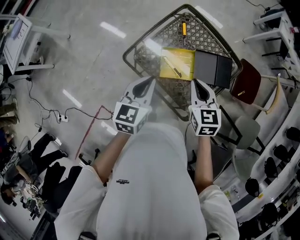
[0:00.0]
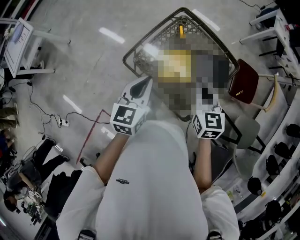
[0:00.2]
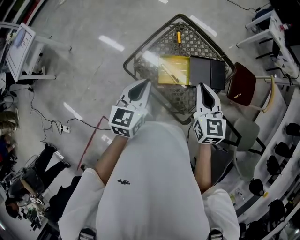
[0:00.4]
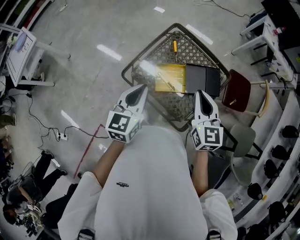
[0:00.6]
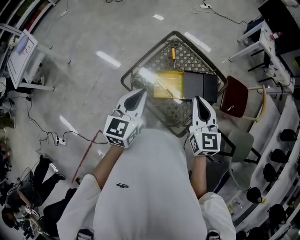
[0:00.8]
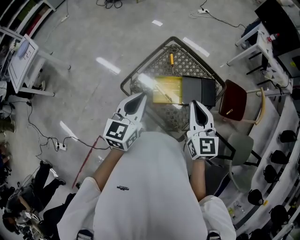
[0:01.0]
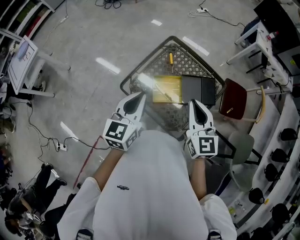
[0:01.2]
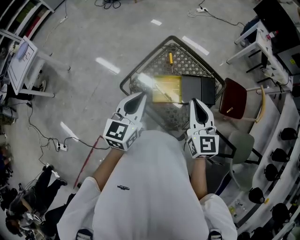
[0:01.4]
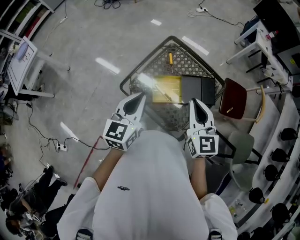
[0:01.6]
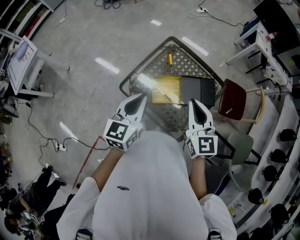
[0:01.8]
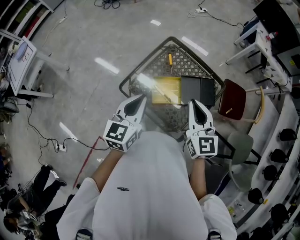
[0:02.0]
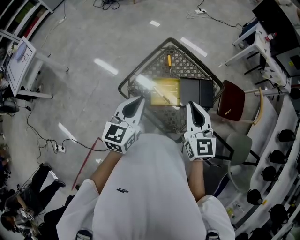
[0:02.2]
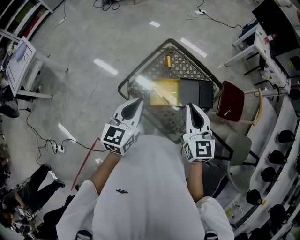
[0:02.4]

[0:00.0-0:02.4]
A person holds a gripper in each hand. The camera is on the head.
0:00.0 to 0:01.2: Both grippers travel together upward, roughly 10 cm. The right gripper swivels about 20 degrees.
0:01.2 to 0:02.4: Both grippers stay about where they are.

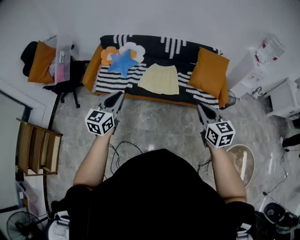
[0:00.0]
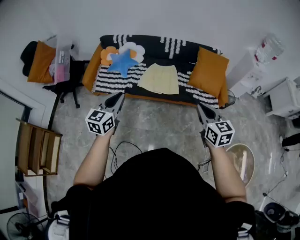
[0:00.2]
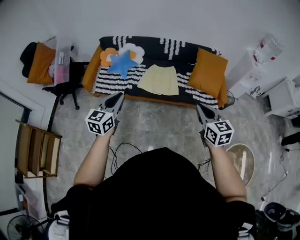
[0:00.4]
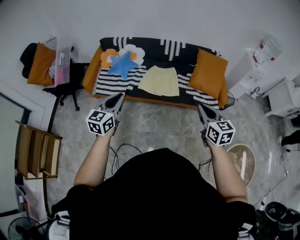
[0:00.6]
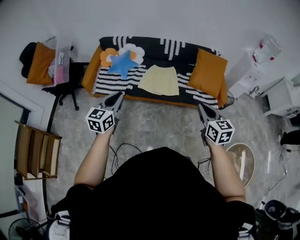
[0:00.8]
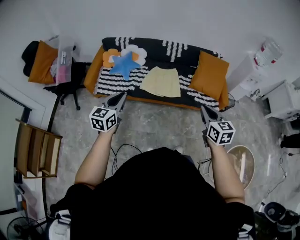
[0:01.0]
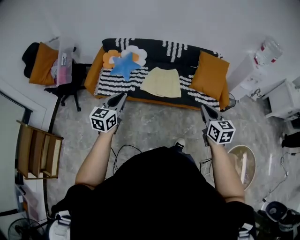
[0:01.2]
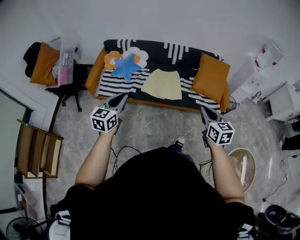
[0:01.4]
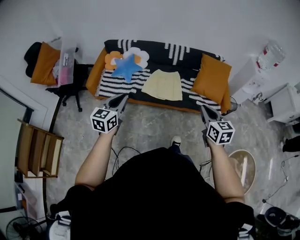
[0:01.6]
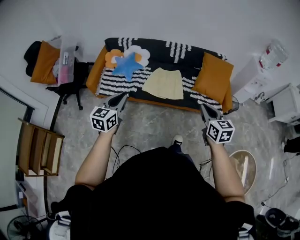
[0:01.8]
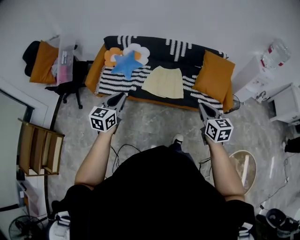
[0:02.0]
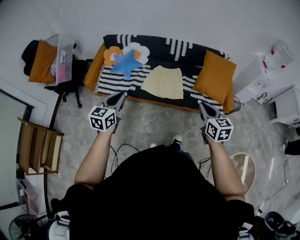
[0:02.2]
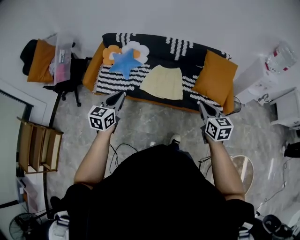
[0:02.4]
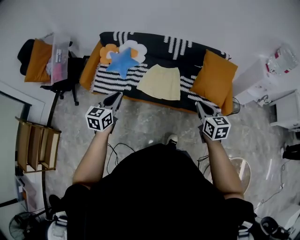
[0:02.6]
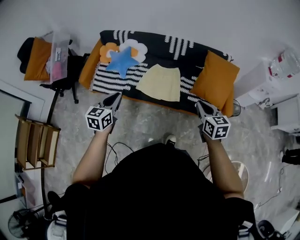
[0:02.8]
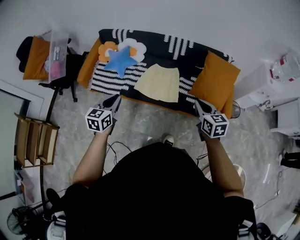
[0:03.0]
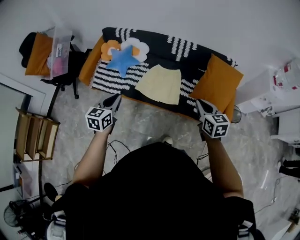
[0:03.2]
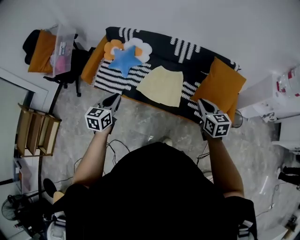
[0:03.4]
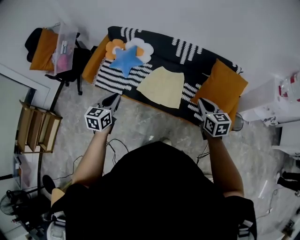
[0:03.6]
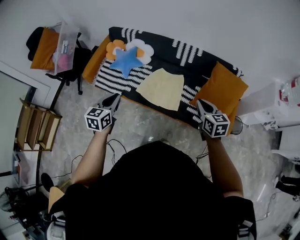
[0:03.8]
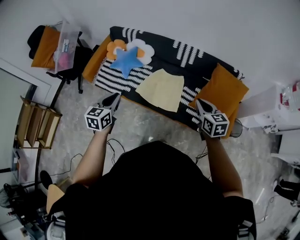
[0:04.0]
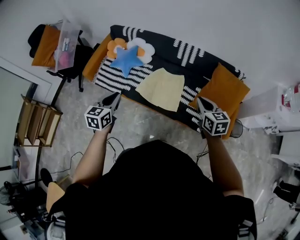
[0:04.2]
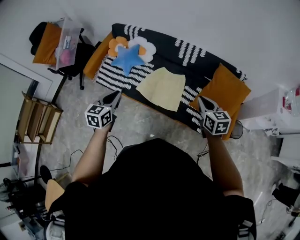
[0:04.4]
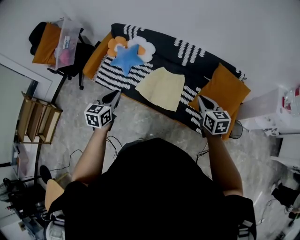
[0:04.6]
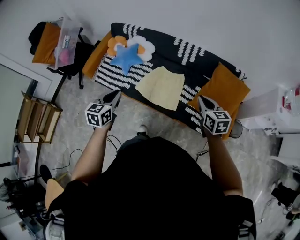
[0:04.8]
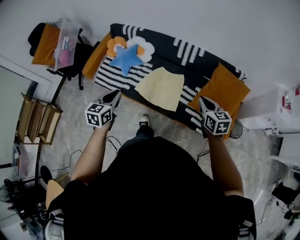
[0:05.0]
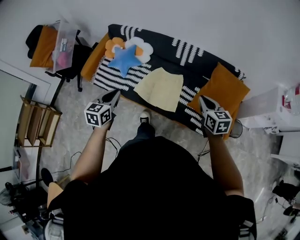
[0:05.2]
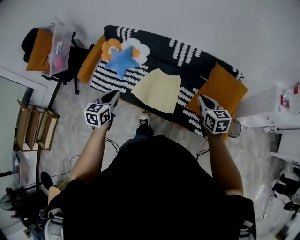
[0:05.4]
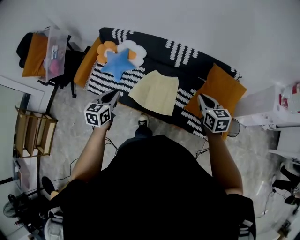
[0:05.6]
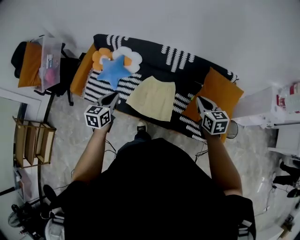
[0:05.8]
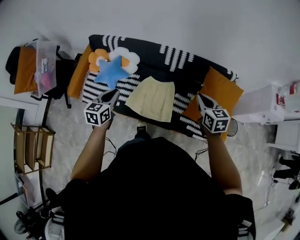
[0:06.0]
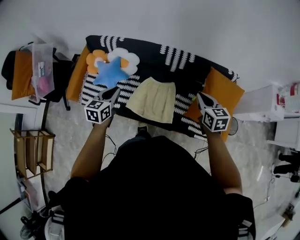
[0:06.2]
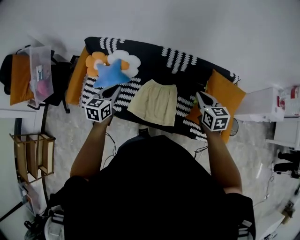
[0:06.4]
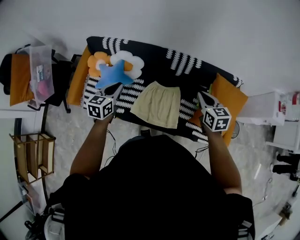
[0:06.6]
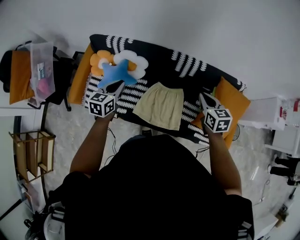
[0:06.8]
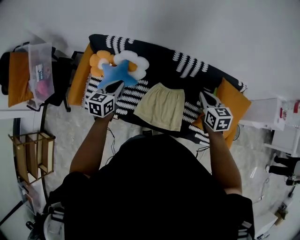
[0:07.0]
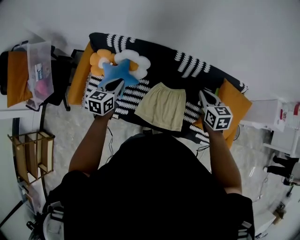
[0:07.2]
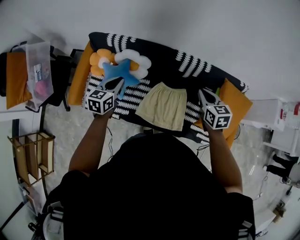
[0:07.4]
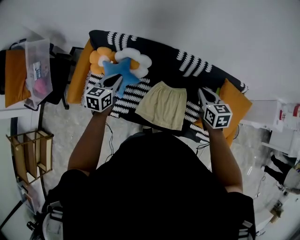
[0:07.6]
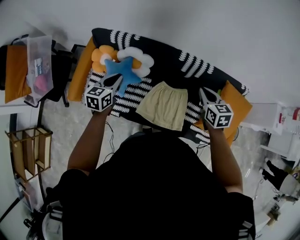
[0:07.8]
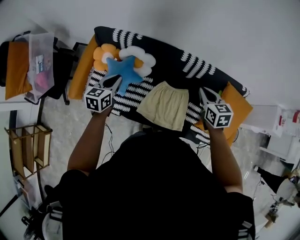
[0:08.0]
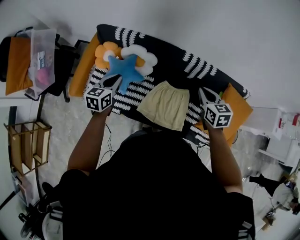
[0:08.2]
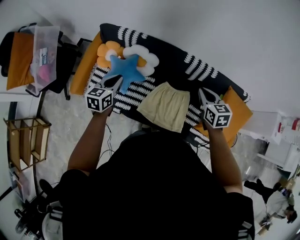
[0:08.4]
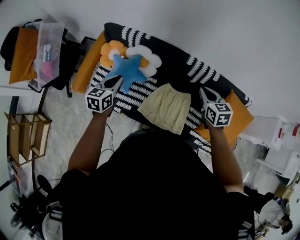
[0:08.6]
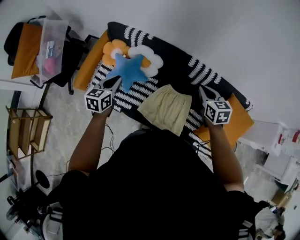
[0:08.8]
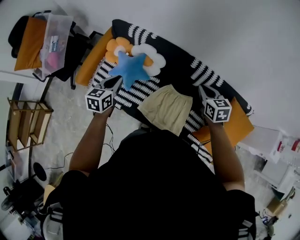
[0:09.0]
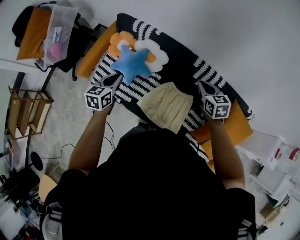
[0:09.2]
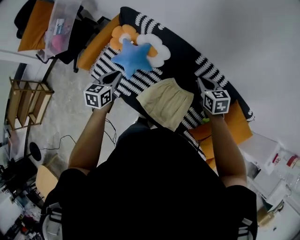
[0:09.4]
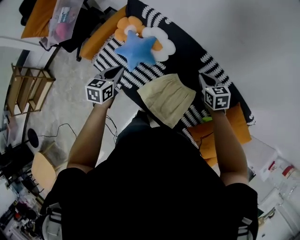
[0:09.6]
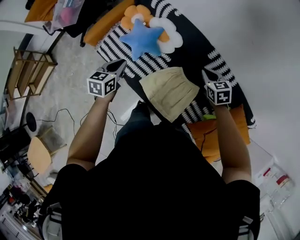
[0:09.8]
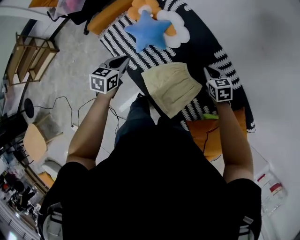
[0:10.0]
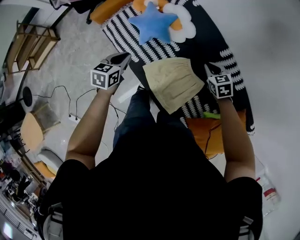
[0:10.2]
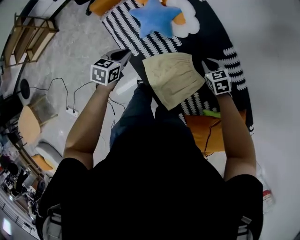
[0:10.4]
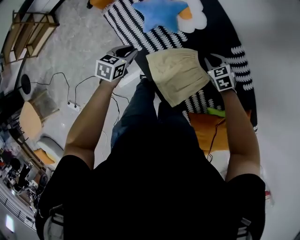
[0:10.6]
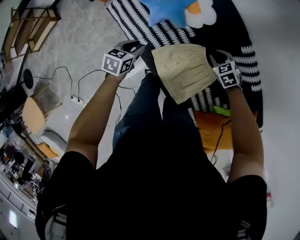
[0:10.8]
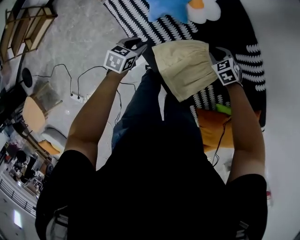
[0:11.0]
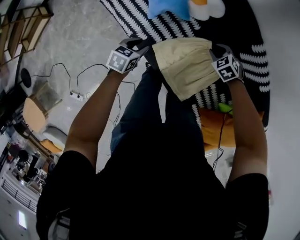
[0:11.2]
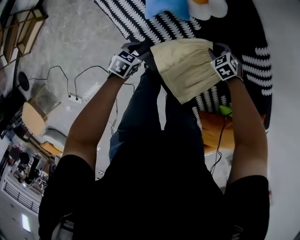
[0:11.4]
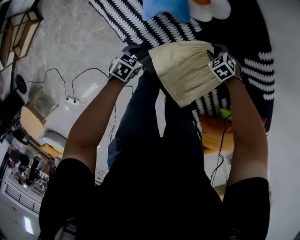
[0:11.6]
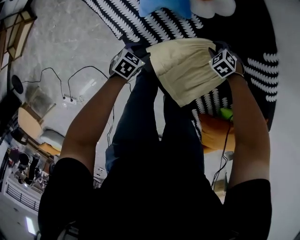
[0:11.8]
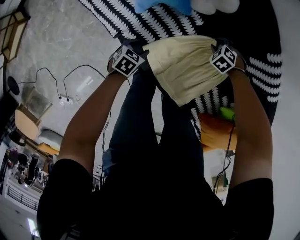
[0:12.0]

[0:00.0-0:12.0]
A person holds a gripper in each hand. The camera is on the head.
0:00.0 to 0:01.6: The grippers stay close to where they were, moving slightly.
0:01.6 to 0:03.0: The right gripper shifts roughly 25 cm forward. Meanwhile the left gripper shifts some 20 cm forward, to the right and downward.
0:03.0 to 0:04.4: The right gripper shifts about 15 cm forward and to the right, while the left gripper shifts roughly 10 cm to the right and forward.
0:04.4 to 0:06.0: The two grippers go about 20 cm forward.
0:06.0 to 0:07.6: The left gripper moves forward and to the left, some 30 cm. The right gripper shifts approximately 30 cm to the left and forward.
0:07.6 to 0:09.0: The left gripper is displaced backward by roughly 5 cm. Meanwhile the right gripper changes place by about 5 cm.
0:09.0 to 0:10.4: Both grippers move downward, approximately 20 cm. The right gripper turns by roughly 50 degrees, while the left gripper changes its angle by approximately 20 degrees.
0:10.4 to 0:12.0: Both grippers travel together downward, approximately 40 cm. The right gripper tilts its fingers approximately 30 degrees downward. The left gripper changes its angle by roughly 30 degrees, and opens.

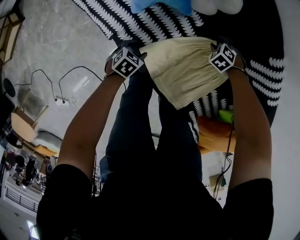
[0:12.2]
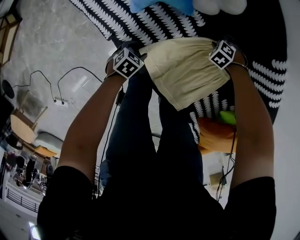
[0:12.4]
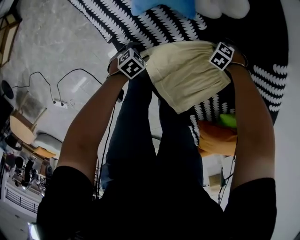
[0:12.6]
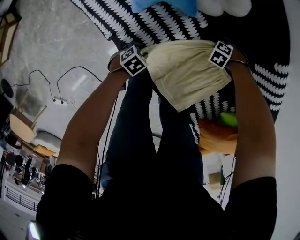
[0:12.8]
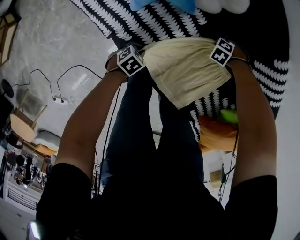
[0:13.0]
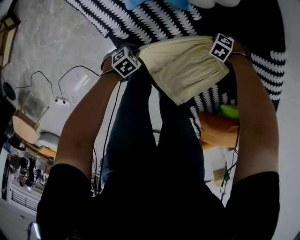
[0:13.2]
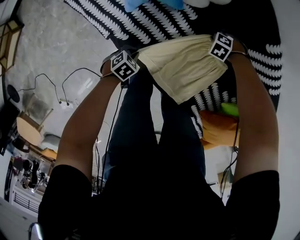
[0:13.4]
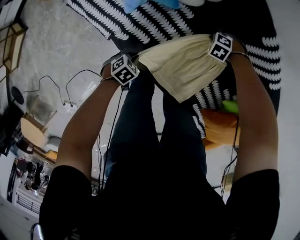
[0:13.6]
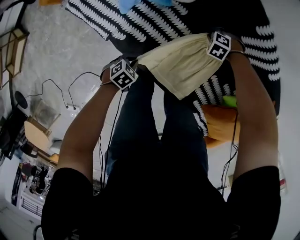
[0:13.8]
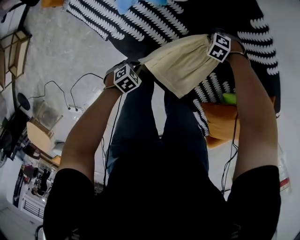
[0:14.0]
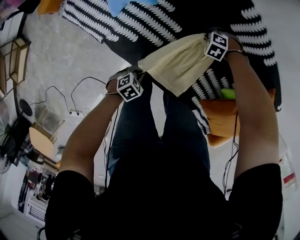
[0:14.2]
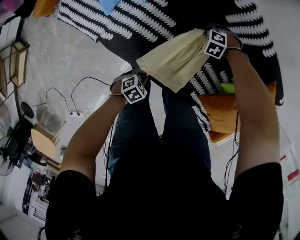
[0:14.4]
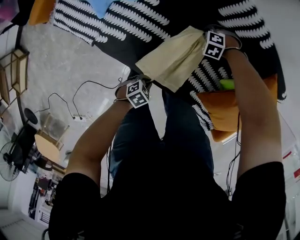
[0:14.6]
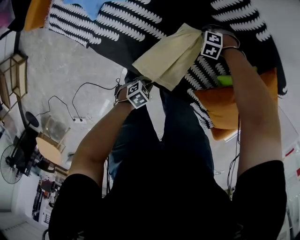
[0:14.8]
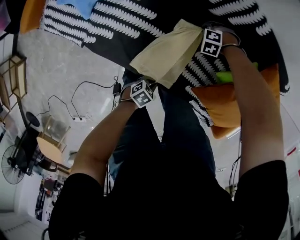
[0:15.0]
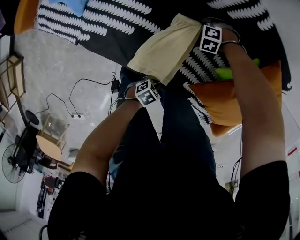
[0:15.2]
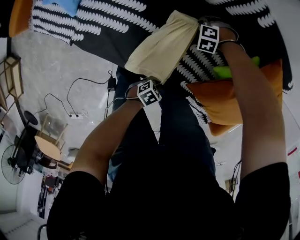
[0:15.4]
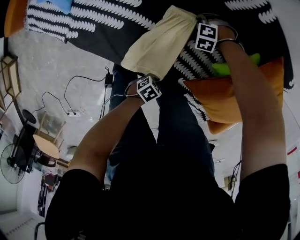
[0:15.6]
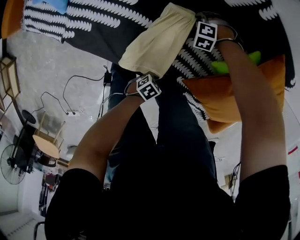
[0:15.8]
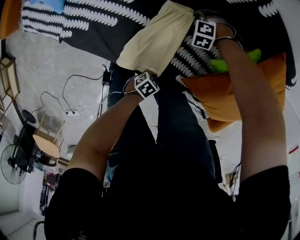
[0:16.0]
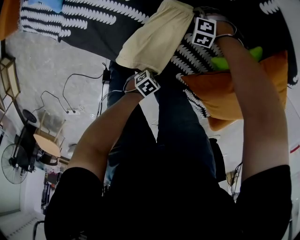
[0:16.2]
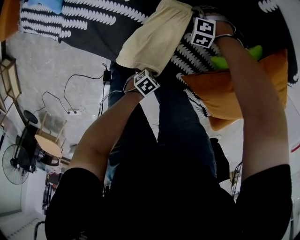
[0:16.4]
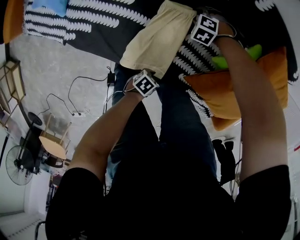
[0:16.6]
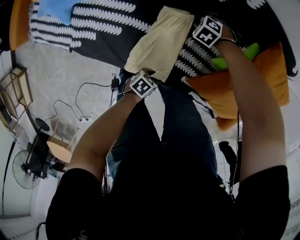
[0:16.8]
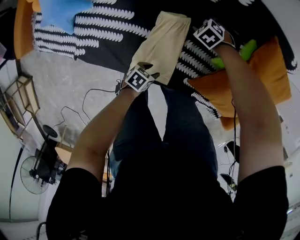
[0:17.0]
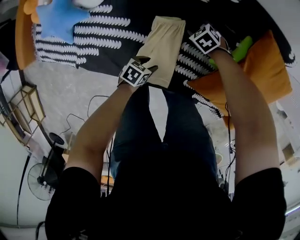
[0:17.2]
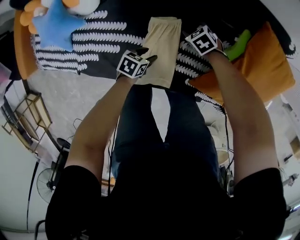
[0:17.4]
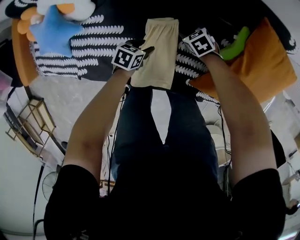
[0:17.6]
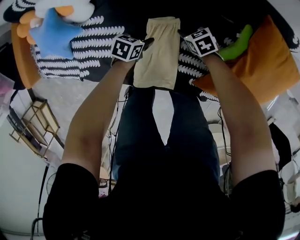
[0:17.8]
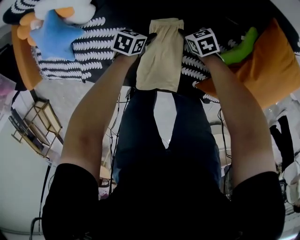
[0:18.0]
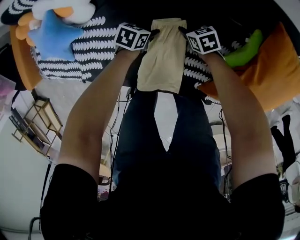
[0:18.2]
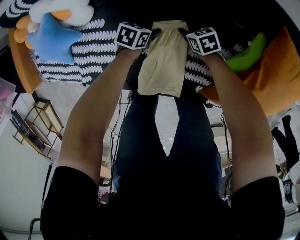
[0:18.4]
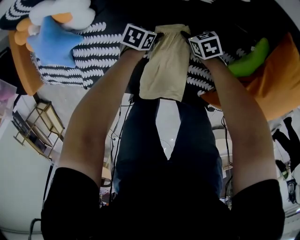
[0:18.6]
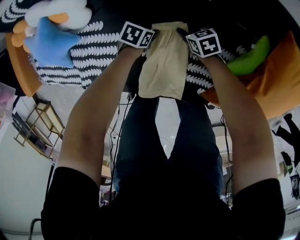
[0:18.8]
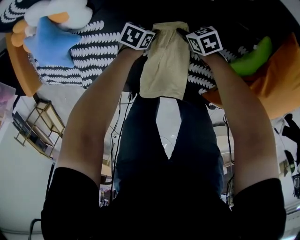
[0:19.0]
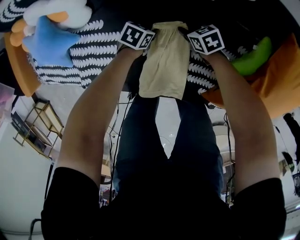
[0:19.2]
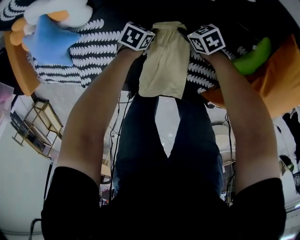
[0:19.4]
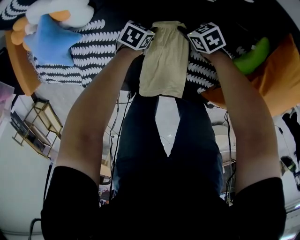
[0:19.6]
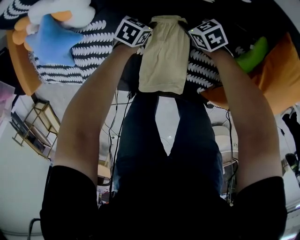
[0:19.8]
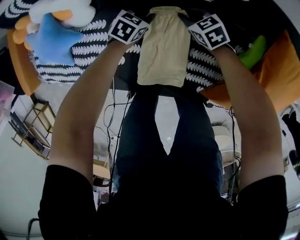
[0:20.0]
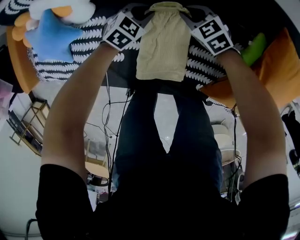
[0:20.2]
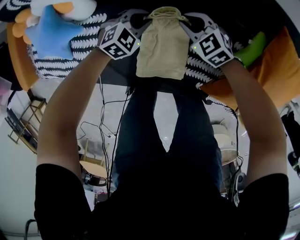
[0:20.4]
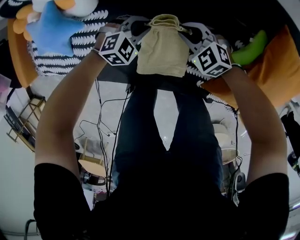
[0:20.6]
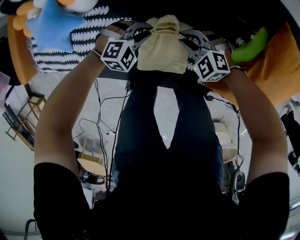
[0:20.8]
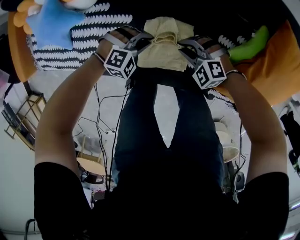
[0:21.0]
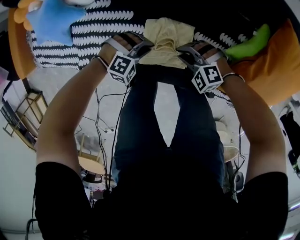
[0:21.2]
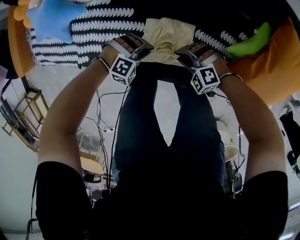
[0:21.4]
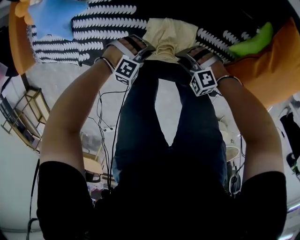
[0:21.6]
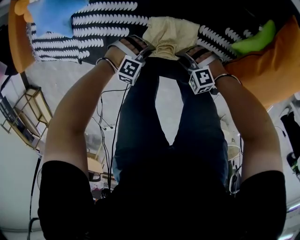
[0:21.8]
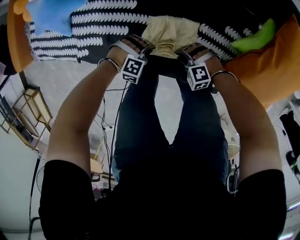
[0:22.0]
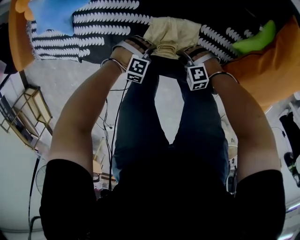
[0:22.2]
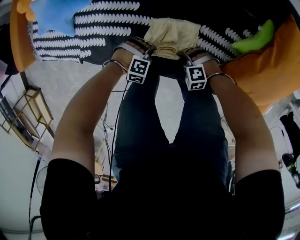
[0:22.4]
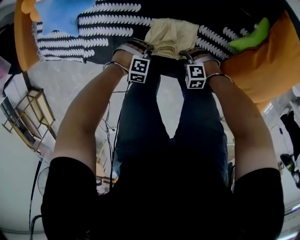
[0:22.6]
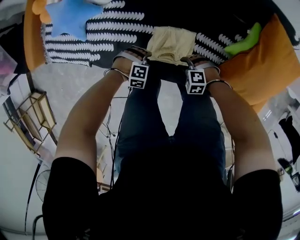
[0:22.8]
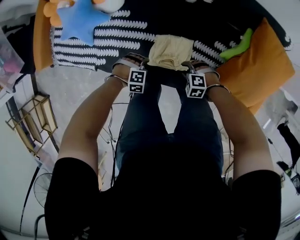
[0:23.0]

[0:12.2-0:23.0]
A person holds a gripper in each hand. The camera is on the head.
0:12.2 to 0:13.8: The left gripper changes place by roughly 10 cm, and closes, while the right gripper changes place by some 5 cm, and closes its fingers.
0:13.8 to 0:15.2: The right gripper shifts by some 20 cm; the left gripper changes place by approximately 35 cm, and rotates some 20 degrees.
0:15.2 to 0:16.8: The right gripper turns by approximately 30 degrees, and opens up. Meanwhile the left gripper opens up.
0:16.8 to 0:18.4: The right gripper rotates around the line of its fingers by roughly 60 degrees, clockwise from behind; the left gripper moves some 35 cm.
0:18.4 to 0:20.0: The right gripper shifts by some 10 cm, and closes; the left gripper ends up roughly 10 cm from where it was, turns by some 20 degrees, and closes.
0:20.0 to 0:21.4: The left gripper ends up some 30 cm from where it was, and rotates around the line of its fingers by roughly 70 degrees, clockwise from behind, while the right gripper shifts by approximately 30 cm, and rotates around the line of its fingers by about 60 degrees, counterclockwise from behind.
0:21.4 to 0:23.0: The left gripper moves roughly 5 cm downward and comes back, and turns by about 20 degrees, while the right gripper moves approximately 5 cm downward and comes back, and turns by roughly 20 degrees.
